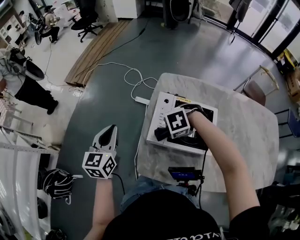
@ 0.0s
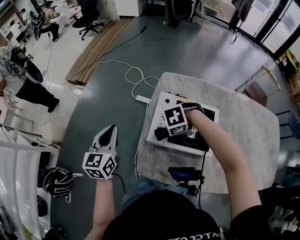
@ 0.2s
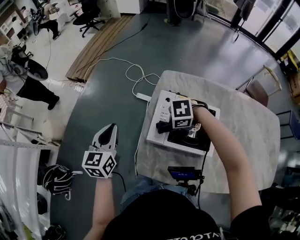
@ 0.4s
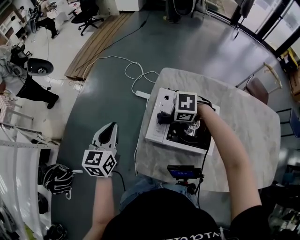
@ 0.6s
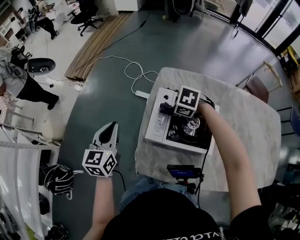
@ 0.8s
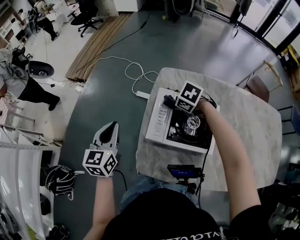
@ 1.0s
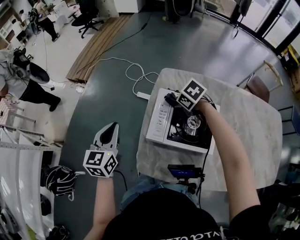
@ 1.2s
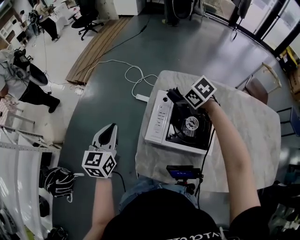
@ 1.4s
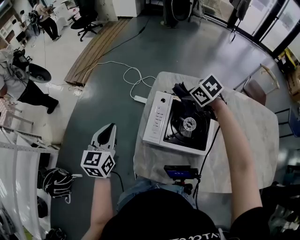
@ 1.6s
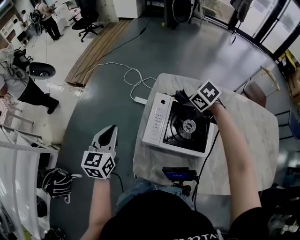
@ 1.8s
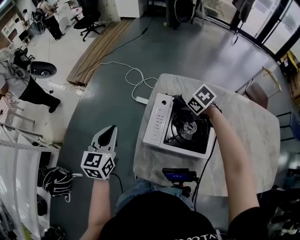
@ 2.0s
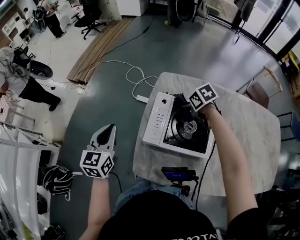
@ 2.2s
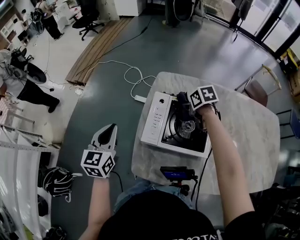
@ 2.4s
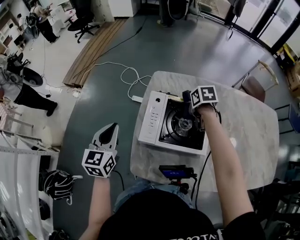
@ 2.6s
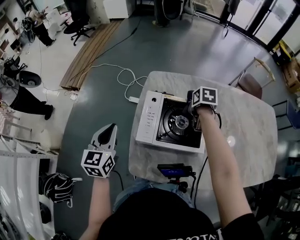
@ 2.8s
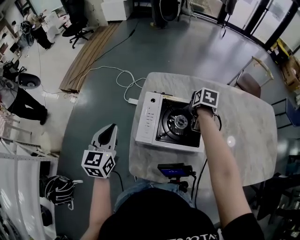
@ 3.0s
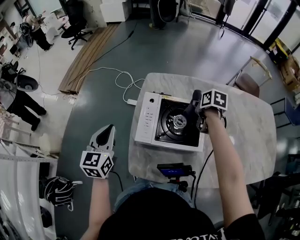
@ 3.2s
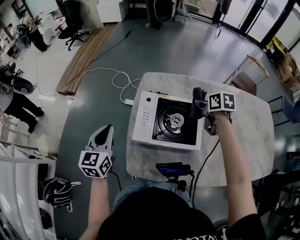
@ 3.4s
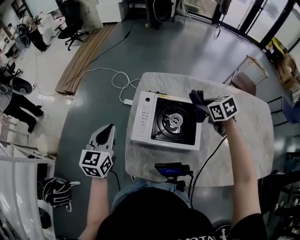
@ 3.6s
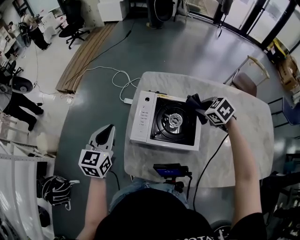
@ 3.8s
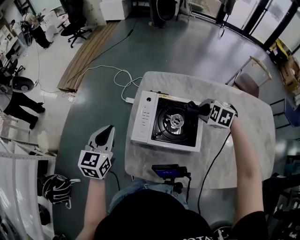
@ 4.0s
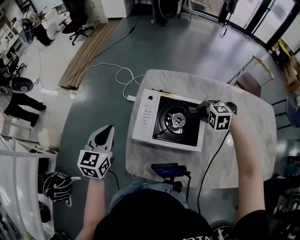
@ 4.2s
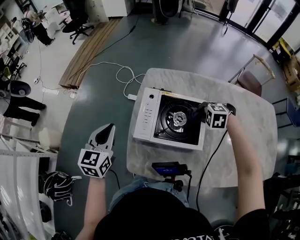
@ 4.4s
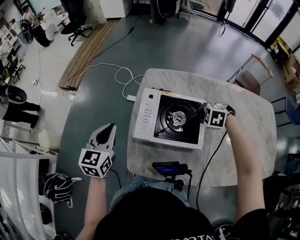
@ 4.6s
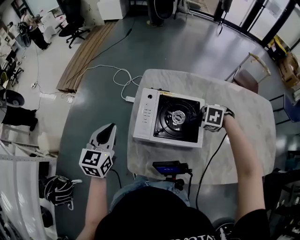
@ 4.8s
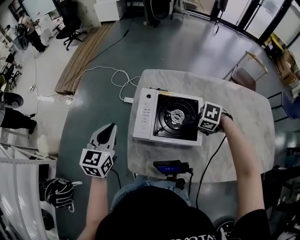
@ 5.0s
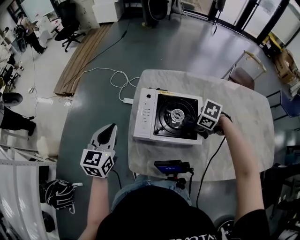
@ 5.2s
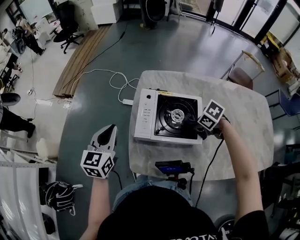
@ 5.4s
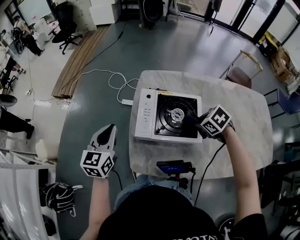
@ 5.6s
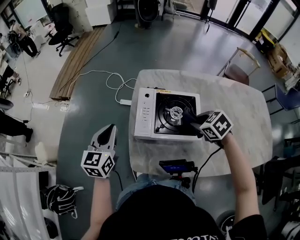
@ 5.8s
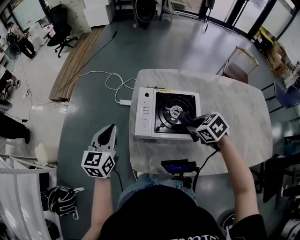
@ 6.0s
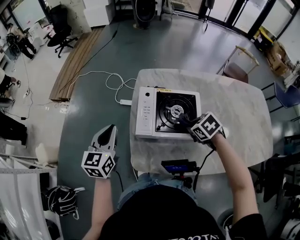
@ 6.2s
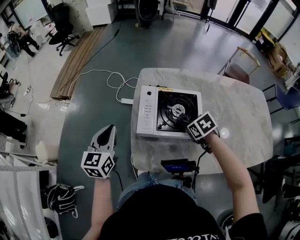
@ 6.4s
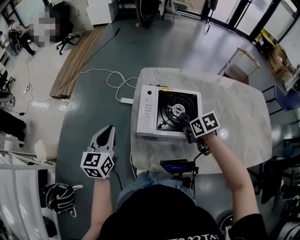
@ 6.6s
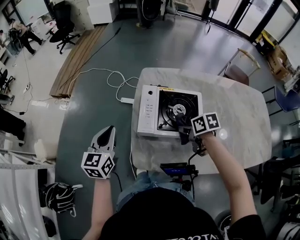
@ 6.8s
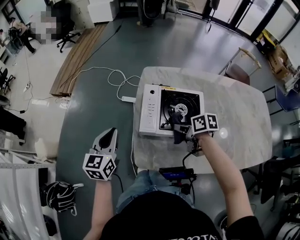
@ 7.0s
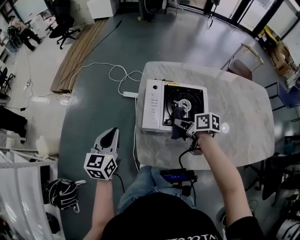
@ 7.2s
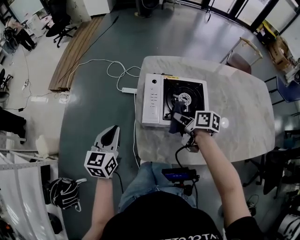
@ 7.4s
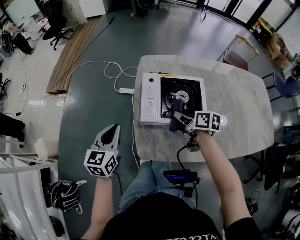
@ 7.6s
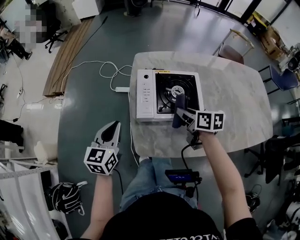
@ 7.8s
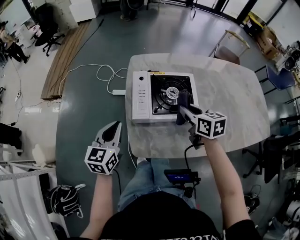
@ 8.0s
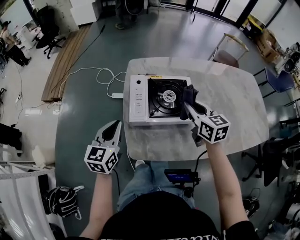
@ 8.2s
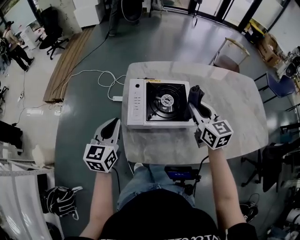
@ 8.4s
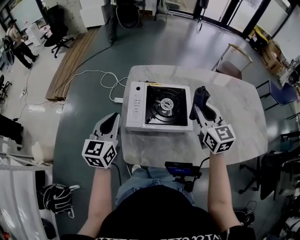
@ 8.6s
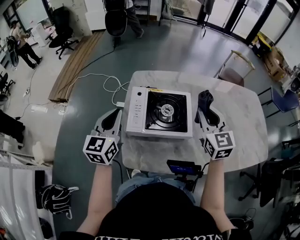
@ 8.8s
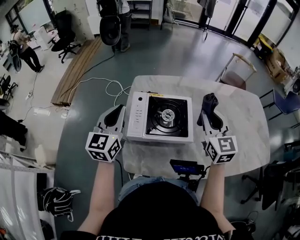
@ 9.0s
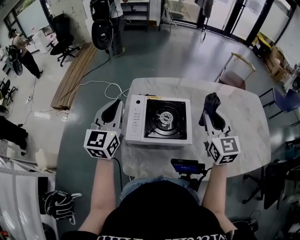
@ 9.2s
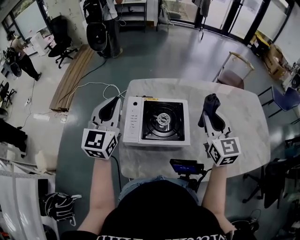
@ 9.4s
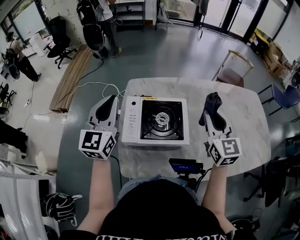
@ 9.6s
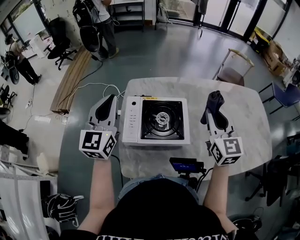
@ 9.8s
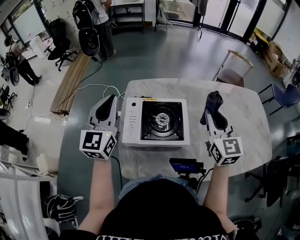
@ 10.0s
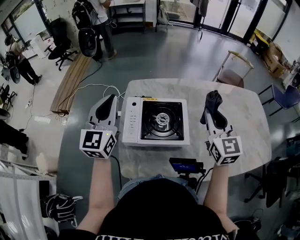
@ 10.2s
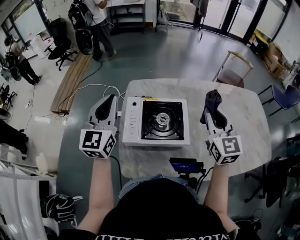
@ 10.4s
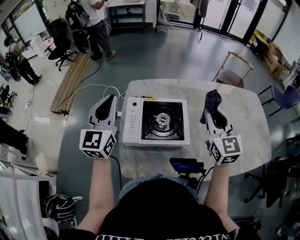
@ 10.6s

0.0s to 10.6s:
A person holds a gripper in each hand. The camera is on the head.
0.0s to 1.6s: The right gripper shifts by approximately 20 cm, and twists about 50 degrees clockwise, seen from behind.
1.6s to 3.0s: The right gripper moves about 15 cm, and rolls clockwise, seen from behind, by approximately 60 degrees.
3.0s to 4.6s: The right gripper reaches some 5 cm upward, then returns, and rotates around the line of its fingers by some 100 degrees, counterclockwise from behind.
4.6s to 6.0s: The right gripper changes place by approximately 10 cm, and rolls clockwise, seen from behind, by roughly 40 degrees.
6.0s to 7.6s: The right gripper is displaced to the left by some 5 cm, and rolls clockwise, seen from behind, by approximately 60 degrees. Meanwhile the left gripper shifts by about 5 cm.
7.6s to 9.0s: The left gripper is displaced upward, to the right and forward by some 15 cm, while the right gripper heads upward and to the right, covering roughly 25 cm, and twists roughly 60 degrees counterclockwise, seen from behind.
9.0s to 10.6s: The left gripper travels upward by roughly 5 cm.

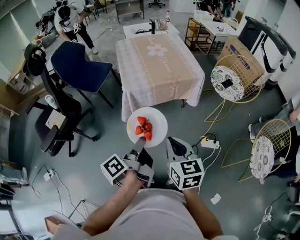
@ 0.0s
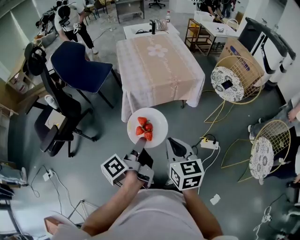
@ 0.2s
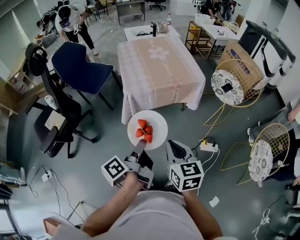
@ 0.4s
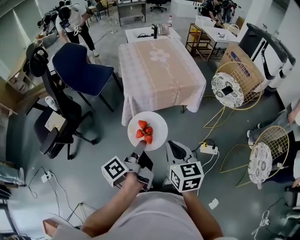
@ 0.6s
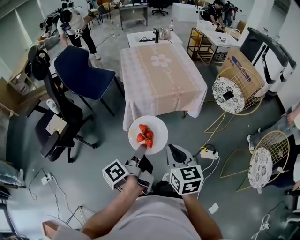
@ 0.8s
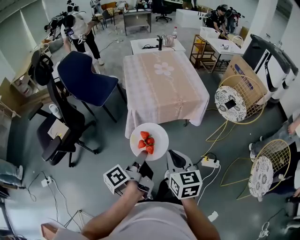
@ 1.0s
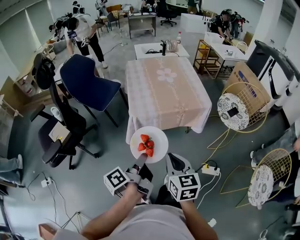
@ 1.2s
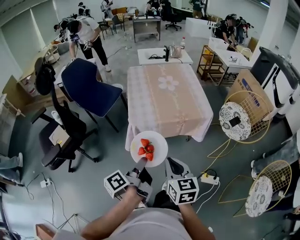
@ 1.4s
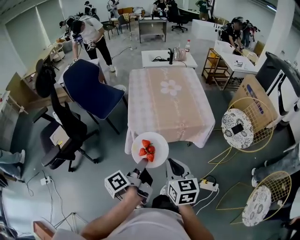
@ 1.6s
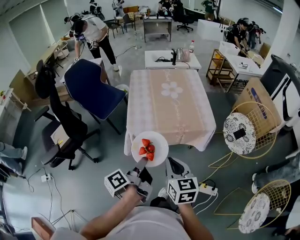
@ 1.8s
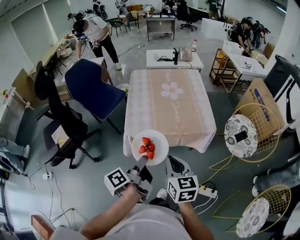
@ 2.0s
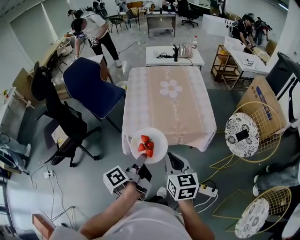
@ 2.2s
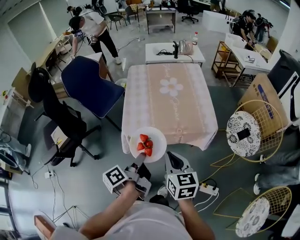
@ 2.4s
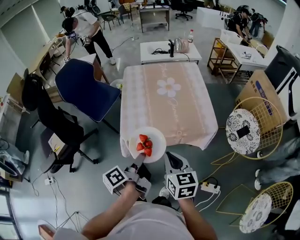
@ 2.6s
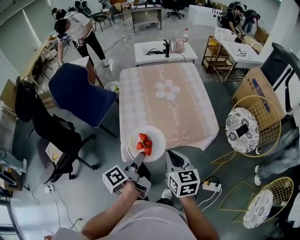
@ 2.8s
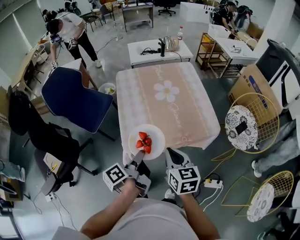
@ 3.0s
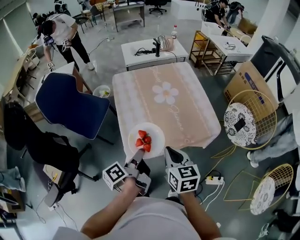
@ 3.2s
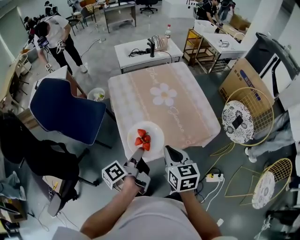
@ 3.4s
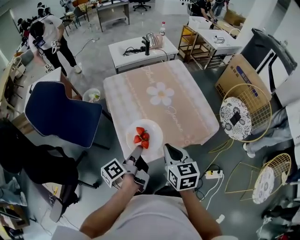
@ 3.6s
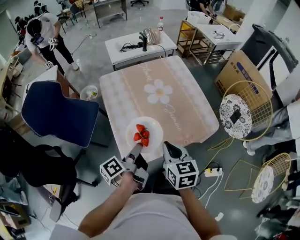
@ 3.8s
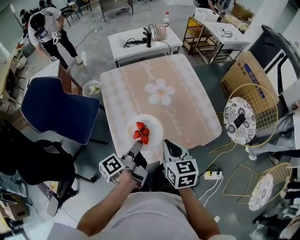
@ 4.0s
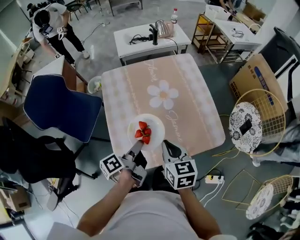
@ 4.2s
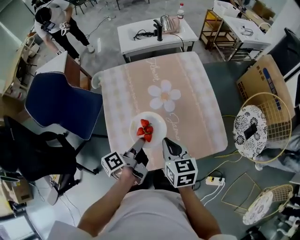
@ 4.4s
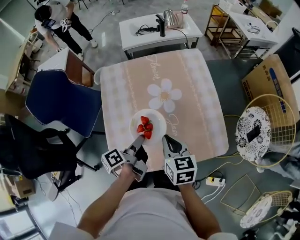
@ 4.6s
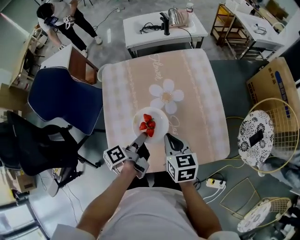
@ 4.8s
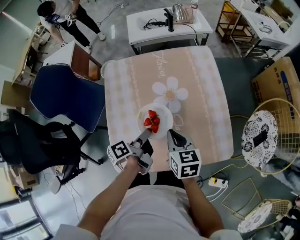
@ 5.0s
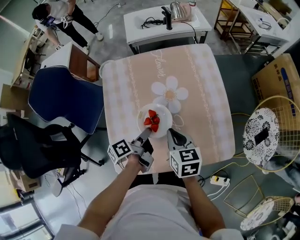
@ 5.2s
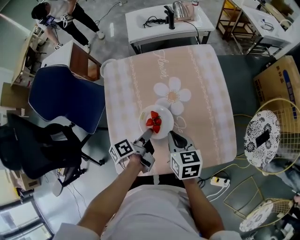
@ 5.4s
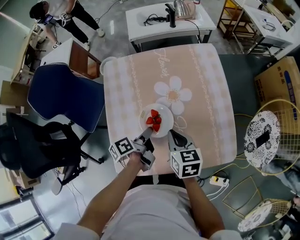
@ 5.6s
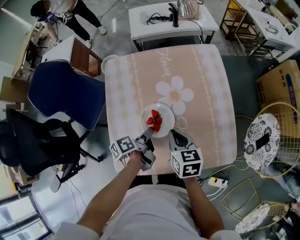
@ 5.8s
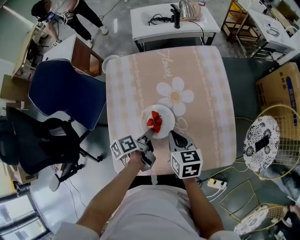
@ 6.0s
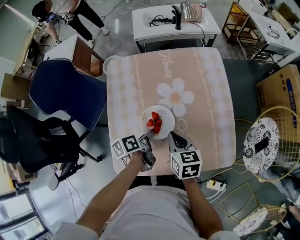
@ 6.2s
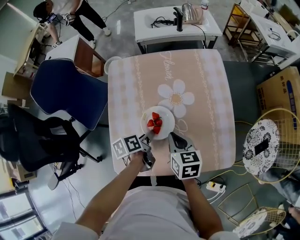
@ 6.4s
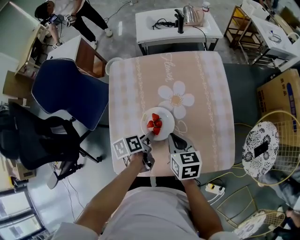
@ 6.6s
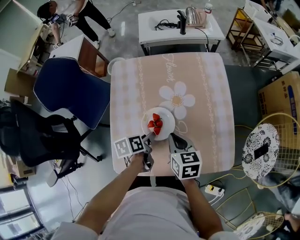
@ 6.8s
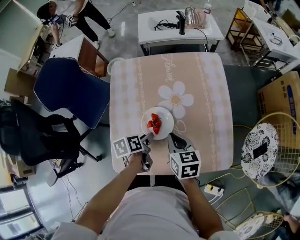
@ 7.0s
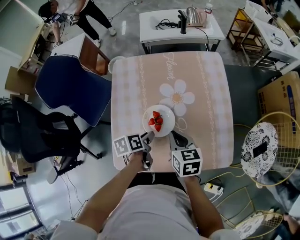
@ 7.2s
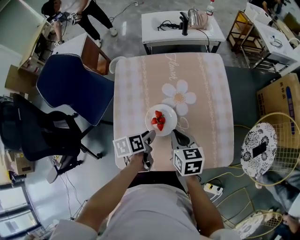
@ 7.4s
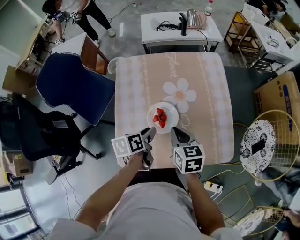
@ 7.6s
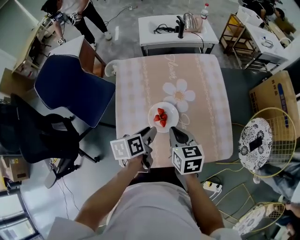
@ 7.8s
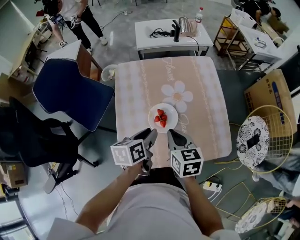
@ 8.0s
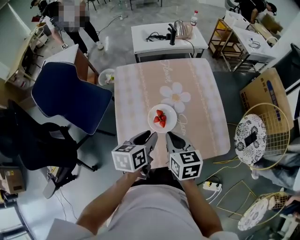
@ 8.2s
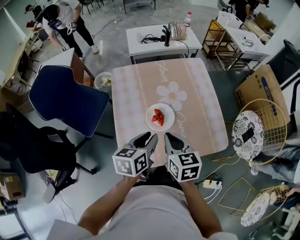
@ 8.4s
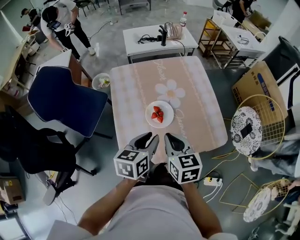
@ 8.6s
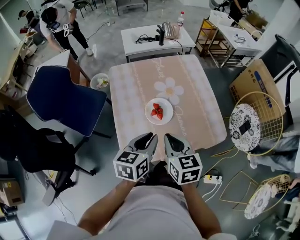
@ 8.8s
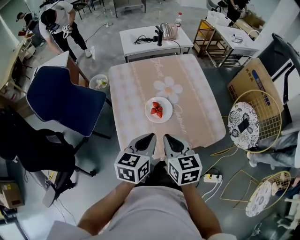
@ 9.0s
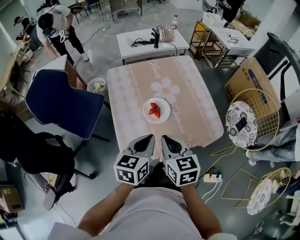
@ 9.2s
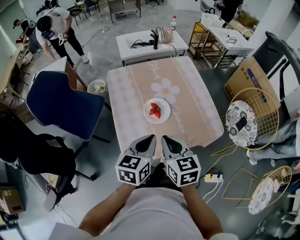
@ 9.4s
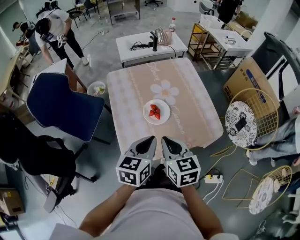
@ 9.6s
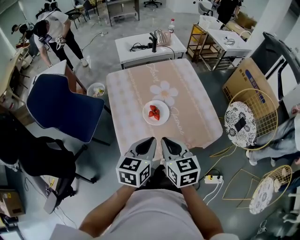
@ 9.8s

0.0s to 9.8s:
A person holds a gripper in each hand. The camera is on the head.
0.0s to 1.4s: The right gripper changes place by some 10 cm.
1.4s to 2.8s: The right gripper changes place by about 20 cm.
2.8s to 4.2s: The right gripper moves about 20 cm.
4.2s to 5.6s: The right gripper shifts by approximately 15 cm.
7.0s to 8.4s: The right gripper goes approximately 10 cm upward.
8.4s to 9.8s: The right gripper changes place by approximately 10 cm.

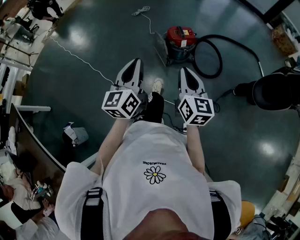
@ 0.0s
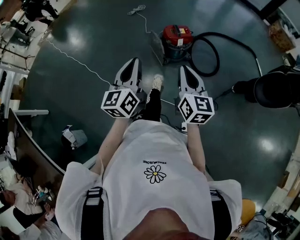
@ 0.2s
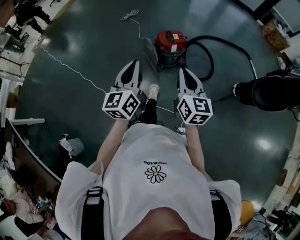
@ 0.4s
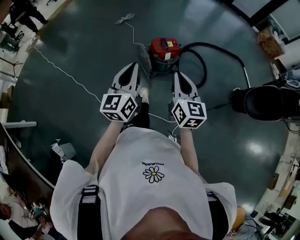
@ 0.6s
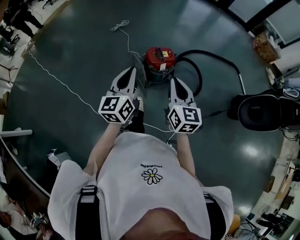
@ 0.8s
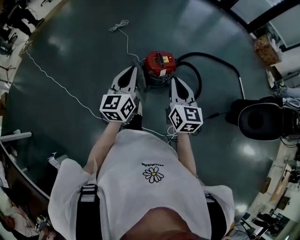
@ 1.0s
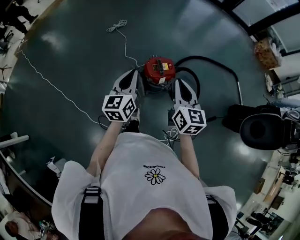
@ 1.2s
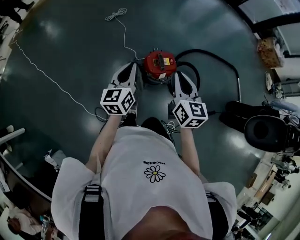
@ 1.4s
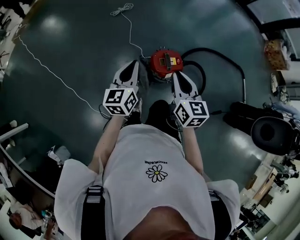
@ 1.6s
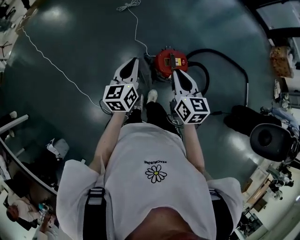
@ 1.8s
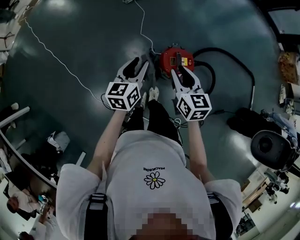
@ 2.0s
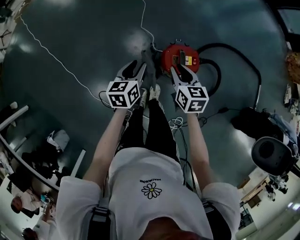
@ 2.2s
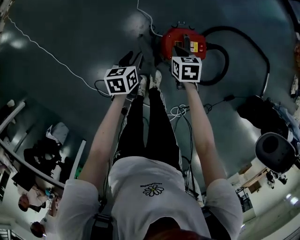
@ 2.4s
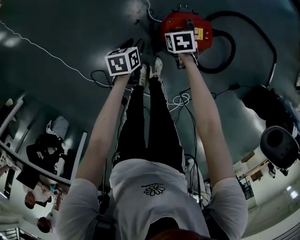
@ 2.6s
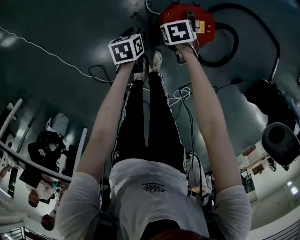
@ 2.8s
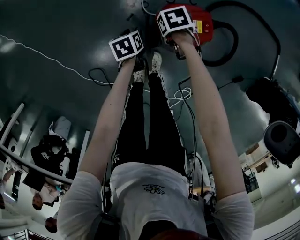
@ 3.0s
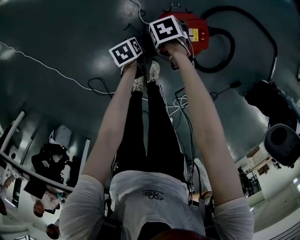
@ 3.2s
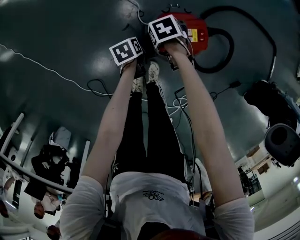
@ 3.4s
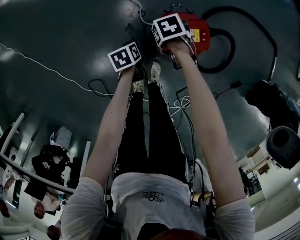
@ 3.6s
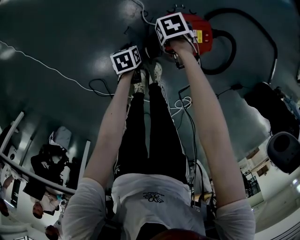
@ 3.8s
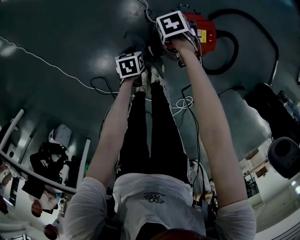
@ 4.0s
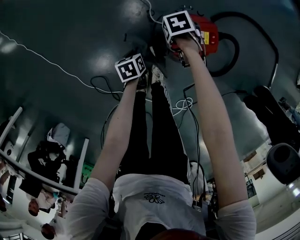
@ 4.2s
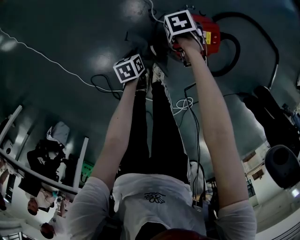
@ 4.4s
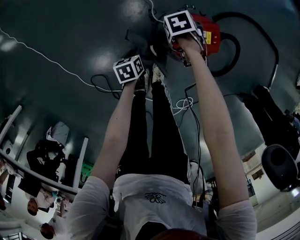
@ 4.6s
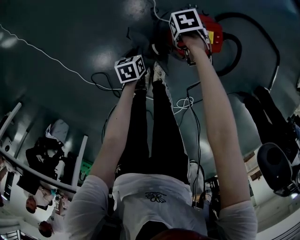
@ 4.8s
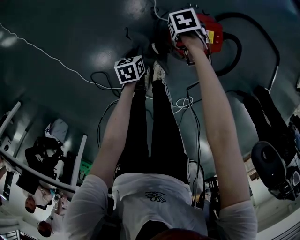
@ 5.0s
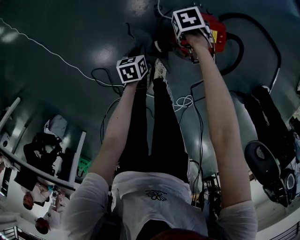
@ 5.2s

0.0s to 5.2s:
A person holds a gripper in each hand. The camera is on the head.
0.0s to 1.8s: The pair of grippers is taken forward, some 50 cm.
1.8s to 3.4s: The two grippers go about 50 cm downward. The left gripper tilts its fingers approximately 50 degrees downward, and opens its fingers; the right gripper tips its fingers downward by approximately 60 degrees, and opens, then closes again.
3.4s to 5.2s: The left gripper ends up about 10 cm from where it was, and closes its fingers.
